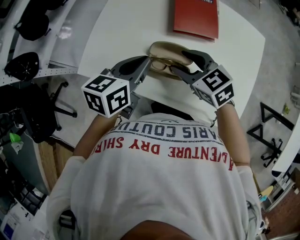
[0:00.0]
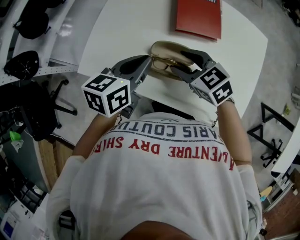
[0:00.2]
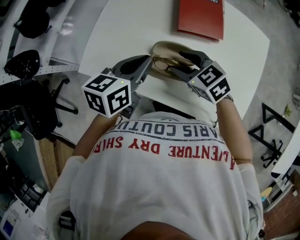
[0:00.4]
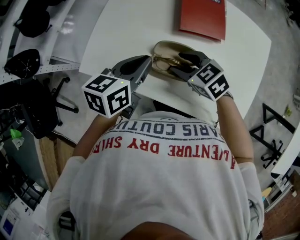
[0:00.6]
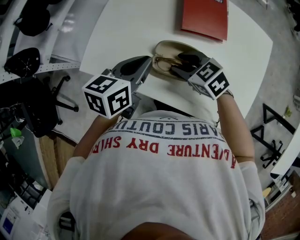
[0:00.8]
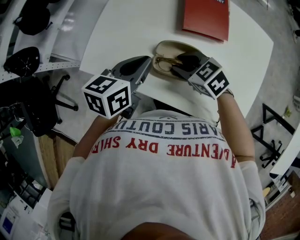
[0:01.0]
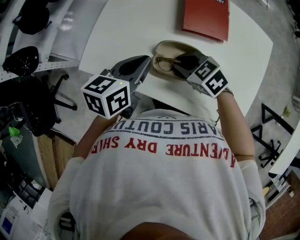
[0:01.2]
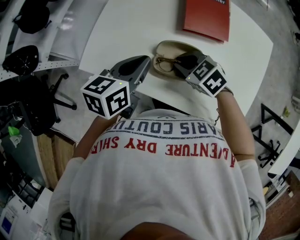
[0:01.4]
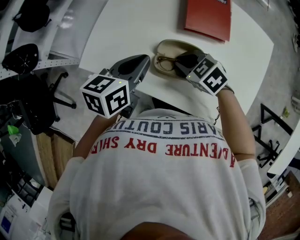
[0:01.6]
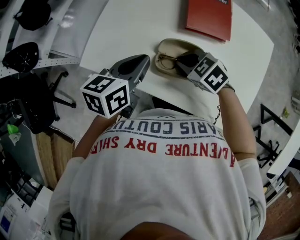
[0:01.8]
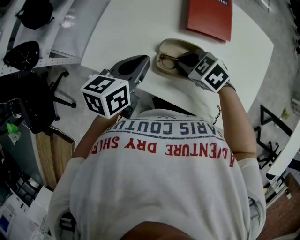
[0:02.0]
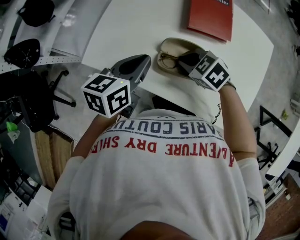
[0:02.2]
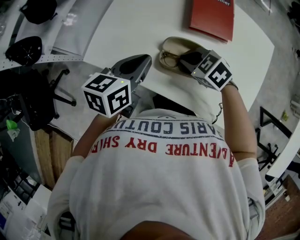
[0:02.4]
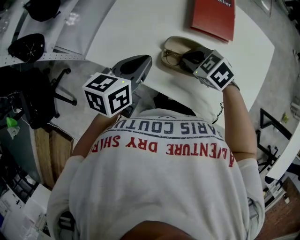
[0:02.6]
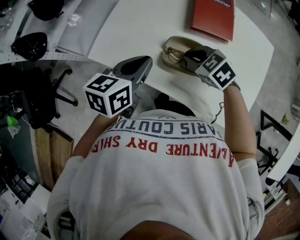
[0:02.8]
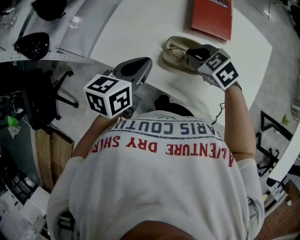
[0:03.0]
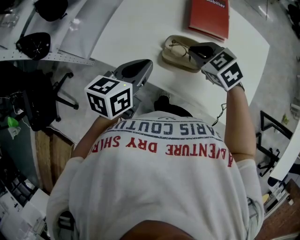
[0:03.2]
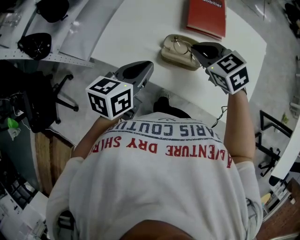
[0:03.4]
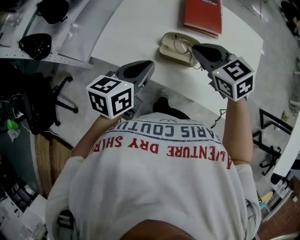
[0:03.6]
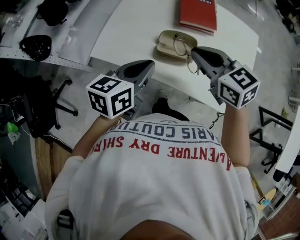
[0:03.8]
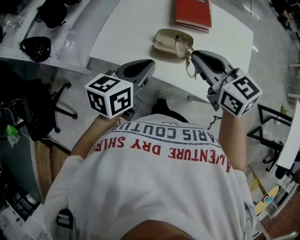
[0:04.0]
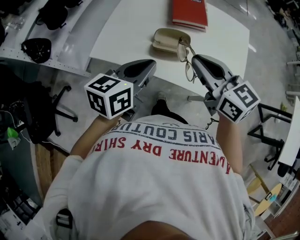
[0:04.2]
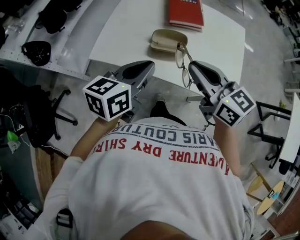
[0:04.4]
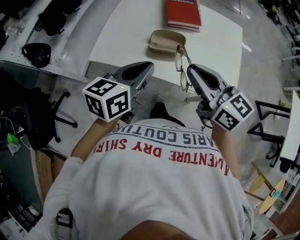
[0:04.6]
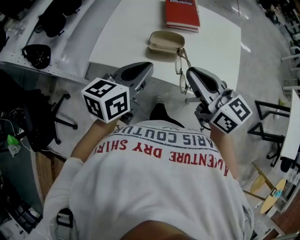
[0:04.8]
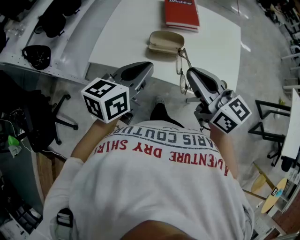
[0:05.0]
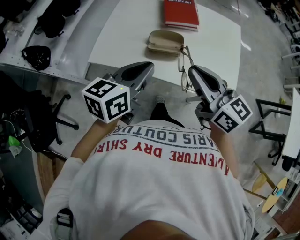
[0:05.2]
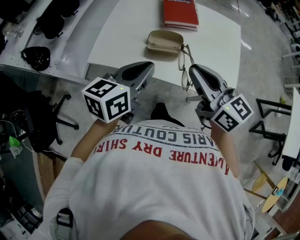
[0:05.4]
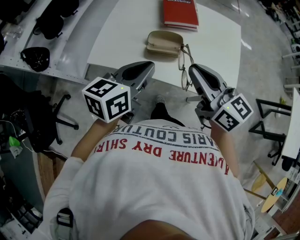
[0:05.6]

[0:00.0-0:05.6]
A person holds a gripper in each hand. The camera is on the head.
0:00.0 to 0:01.4: The right gripper goes roughly 5 cm downward, and closes.
0:01.4 to 0:02.8: The grippers move only a little.
0:02.8 to 0:04.2: The left gripper shifts approximately 15 cm backward and upward, while the right gripper is displaced upward and backward by approximately 25 cm, and tilts its fingers about 40 degrees upward.
0:04.2 to 0:05.6: The grippers move only a little.

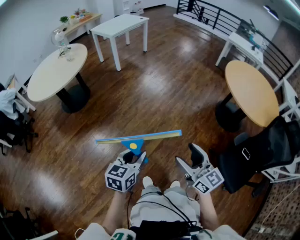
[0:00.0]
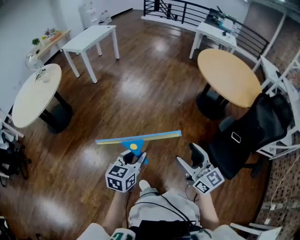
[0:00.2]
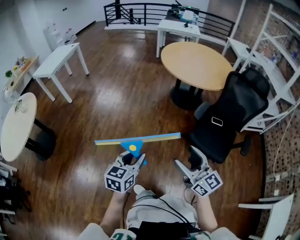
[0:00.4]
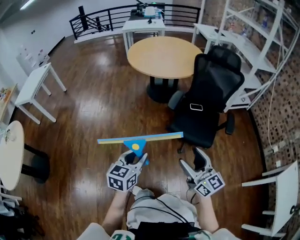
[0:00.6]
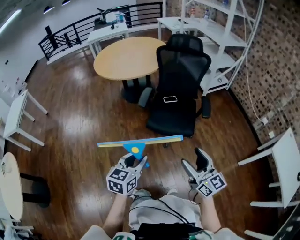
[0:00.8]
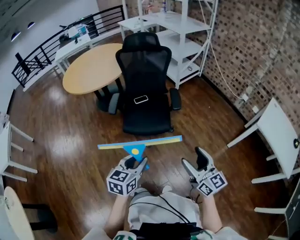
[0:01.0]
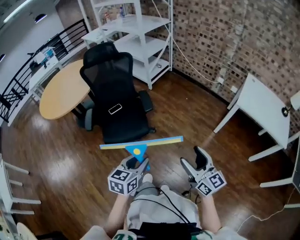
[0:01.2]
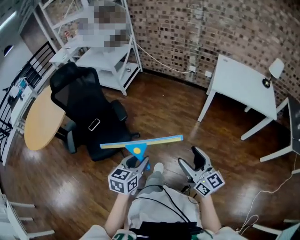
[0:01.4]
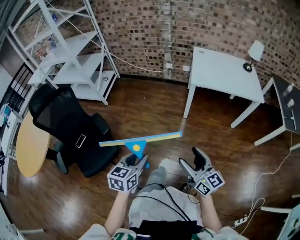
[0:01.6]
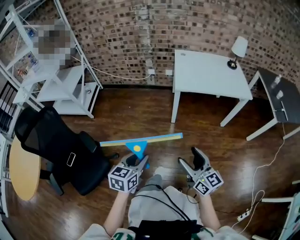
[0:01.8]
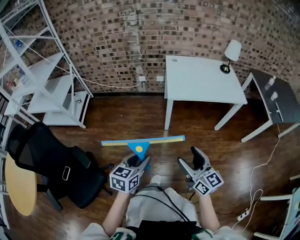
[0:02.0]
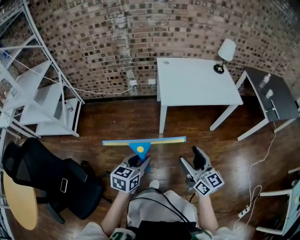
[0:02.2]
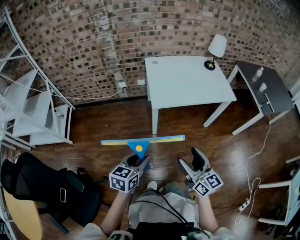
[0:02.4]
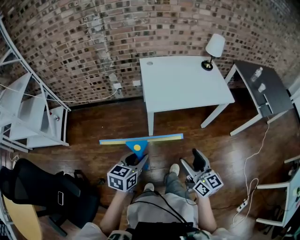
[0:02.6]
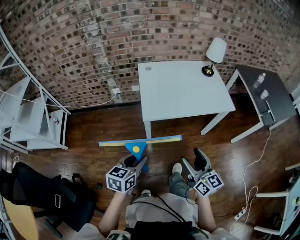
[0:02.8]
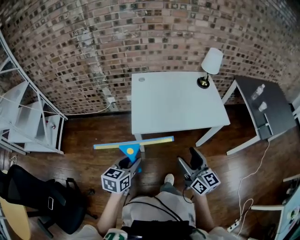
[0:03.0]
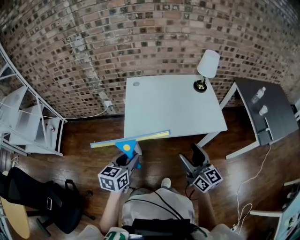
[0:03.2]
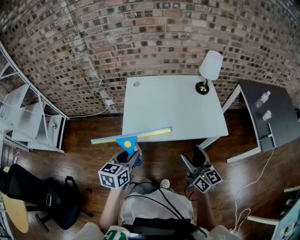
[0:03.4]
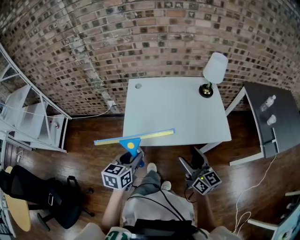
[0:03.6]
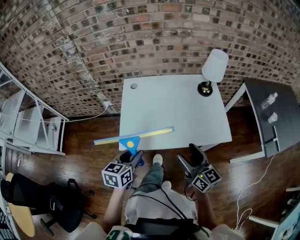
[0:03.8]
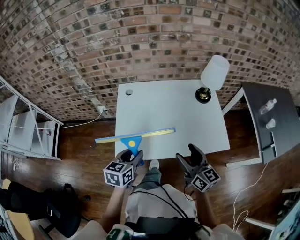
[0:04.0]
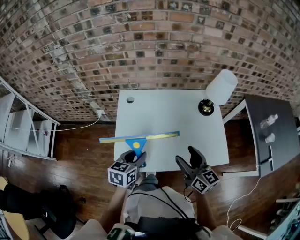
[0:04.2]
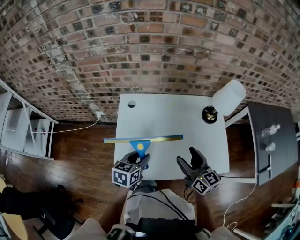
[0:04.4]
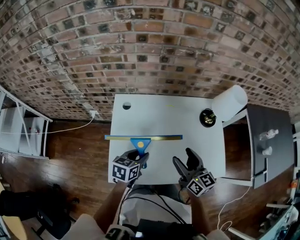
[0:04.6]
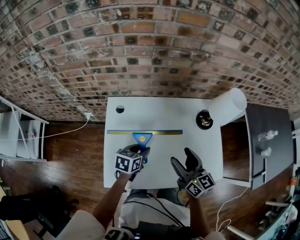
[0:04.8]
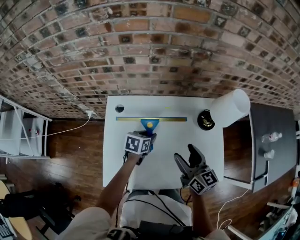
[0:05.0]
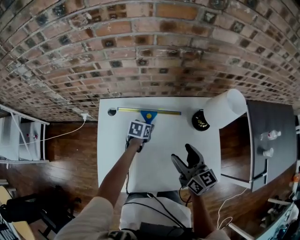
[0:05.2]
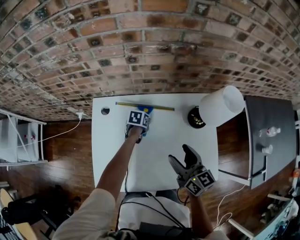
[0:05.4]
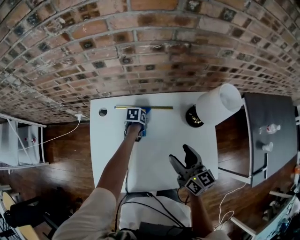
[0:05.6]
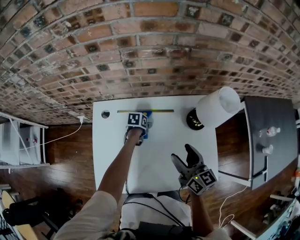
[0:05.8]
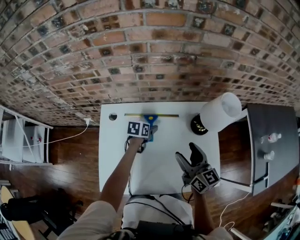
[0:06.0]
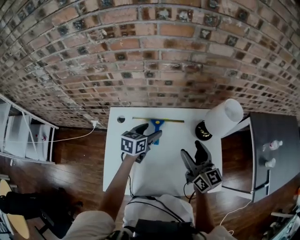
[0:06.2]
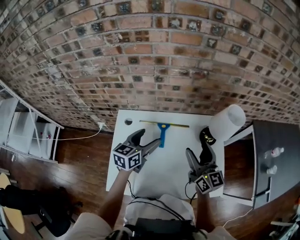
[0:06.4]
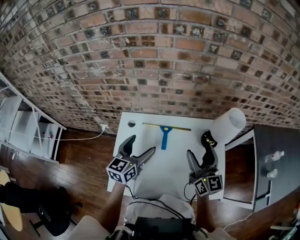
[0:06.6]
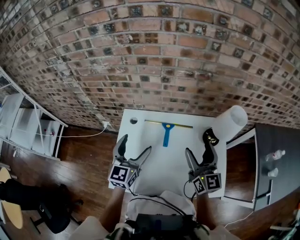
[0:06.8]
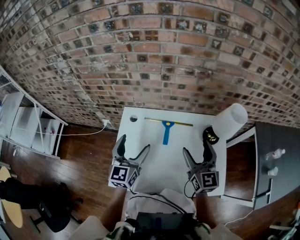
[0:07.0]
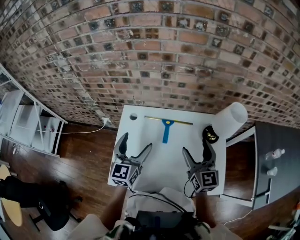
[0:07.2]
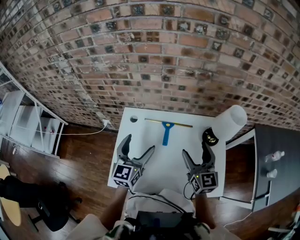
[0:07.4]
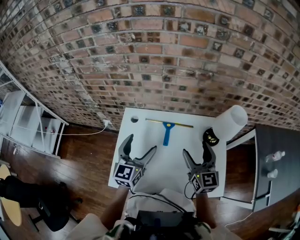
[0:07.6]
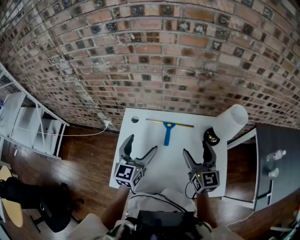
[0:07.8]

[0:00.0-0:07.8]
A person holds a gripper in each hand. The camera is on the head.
0:00.0 to 0:01.6: The two grippers travel together, roughly 90 cm. The right gripper swivels about 110 degrees; the left gripper swivels about 110 degrees.
0:01.6 to 0:03.2: The two grippers travel together, some 60 cm. The right gripper rotates some 20 degrees.
0:03.2 to 0:04.6: Both grippers travel together forward, roughly 35 cm.
0:04.6 to 0:06.2: The right gripper is displaced forward and to the right by roughly 15 cm; the left gripper travels forward by roughly 20 cm, and opens its fingers.
0:06.2 to 0:07.8: The left gripper is displaced upward, backward and to the left by approximately 20 cm, and turns by some 40 degrees.

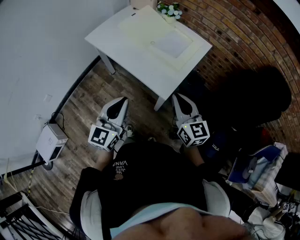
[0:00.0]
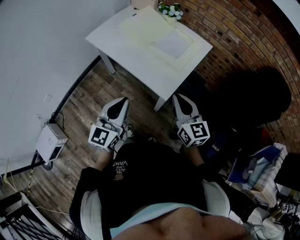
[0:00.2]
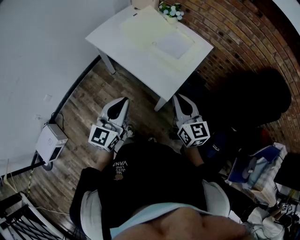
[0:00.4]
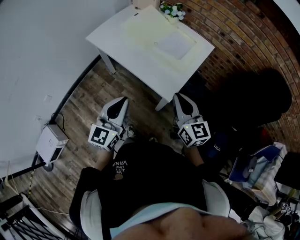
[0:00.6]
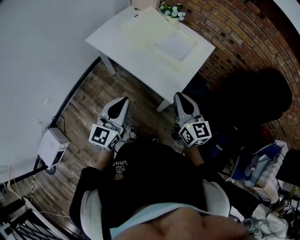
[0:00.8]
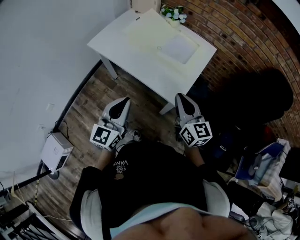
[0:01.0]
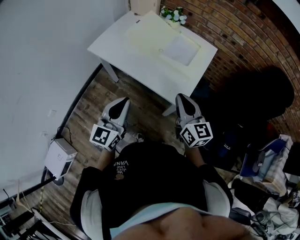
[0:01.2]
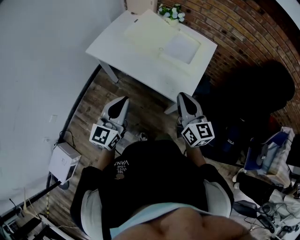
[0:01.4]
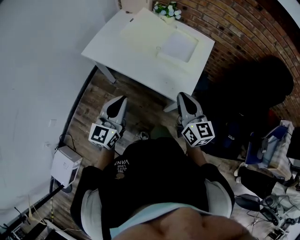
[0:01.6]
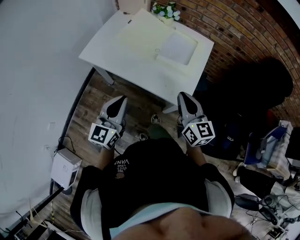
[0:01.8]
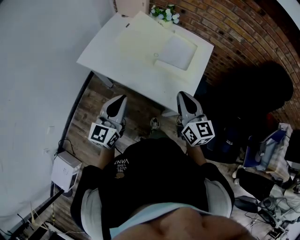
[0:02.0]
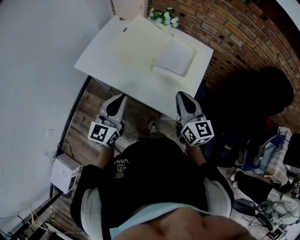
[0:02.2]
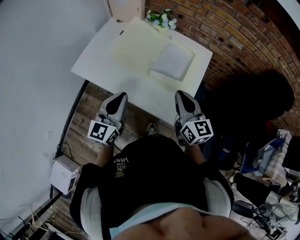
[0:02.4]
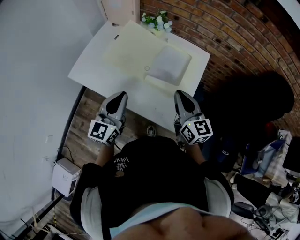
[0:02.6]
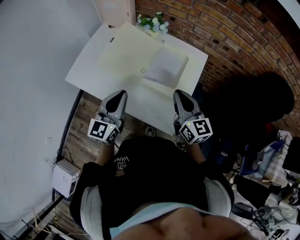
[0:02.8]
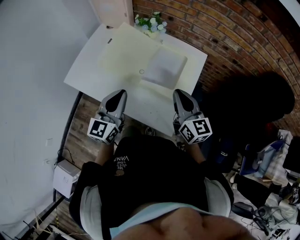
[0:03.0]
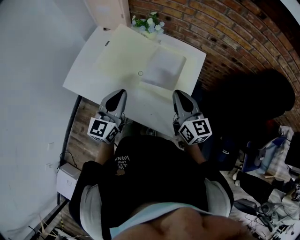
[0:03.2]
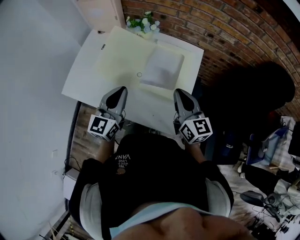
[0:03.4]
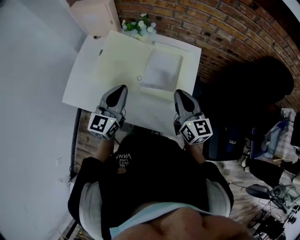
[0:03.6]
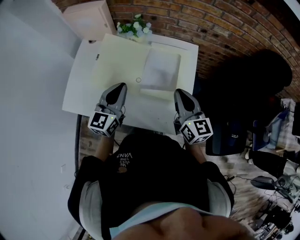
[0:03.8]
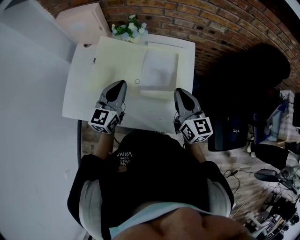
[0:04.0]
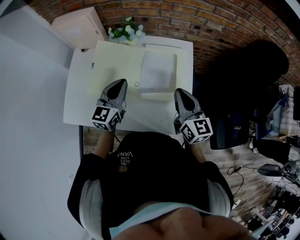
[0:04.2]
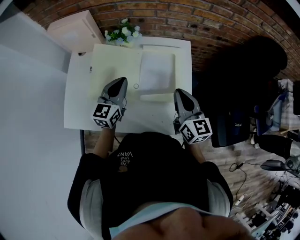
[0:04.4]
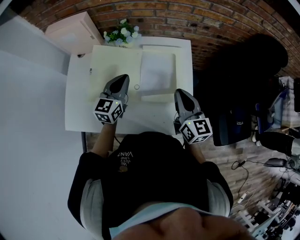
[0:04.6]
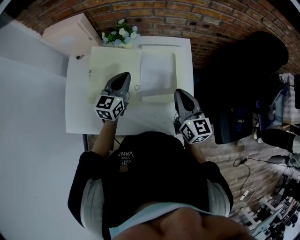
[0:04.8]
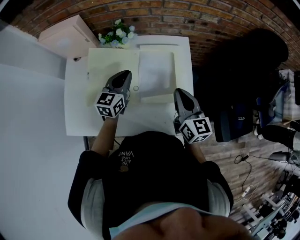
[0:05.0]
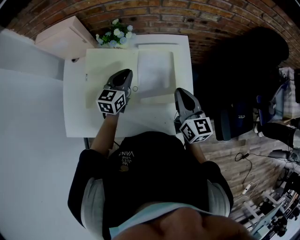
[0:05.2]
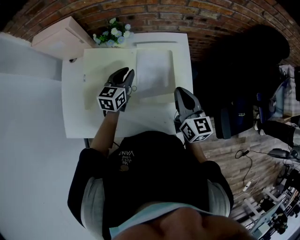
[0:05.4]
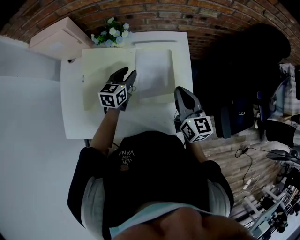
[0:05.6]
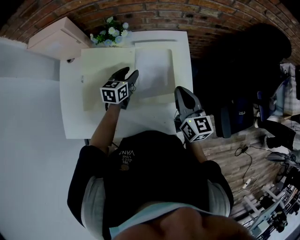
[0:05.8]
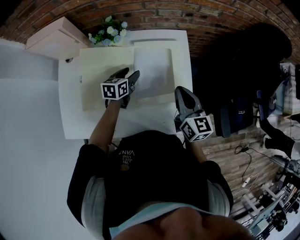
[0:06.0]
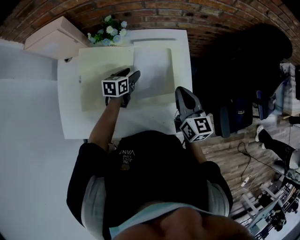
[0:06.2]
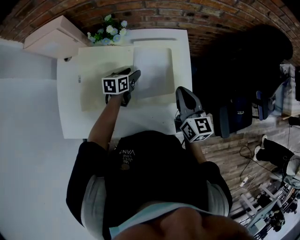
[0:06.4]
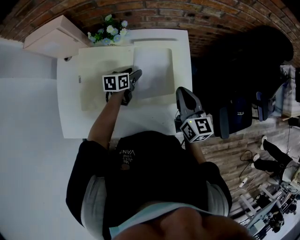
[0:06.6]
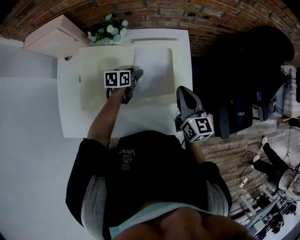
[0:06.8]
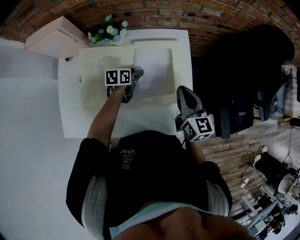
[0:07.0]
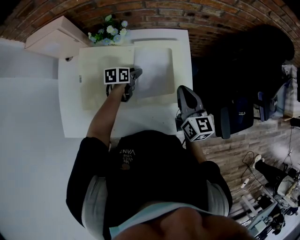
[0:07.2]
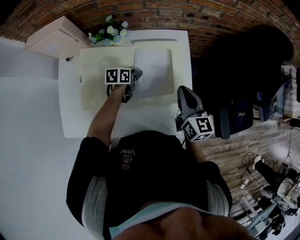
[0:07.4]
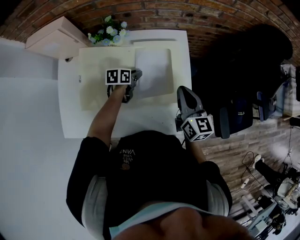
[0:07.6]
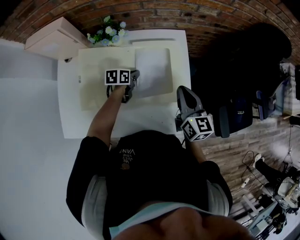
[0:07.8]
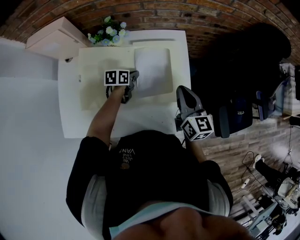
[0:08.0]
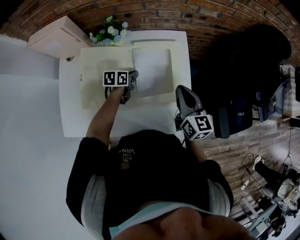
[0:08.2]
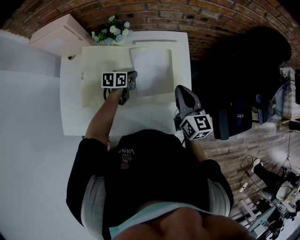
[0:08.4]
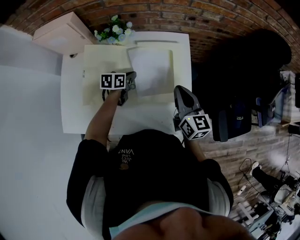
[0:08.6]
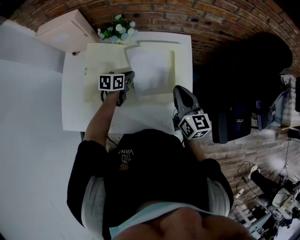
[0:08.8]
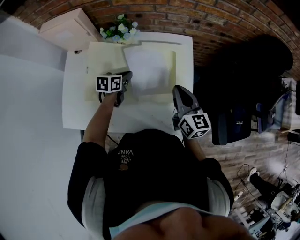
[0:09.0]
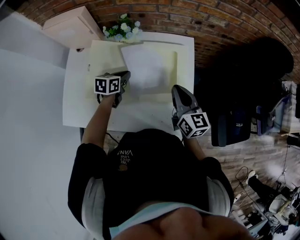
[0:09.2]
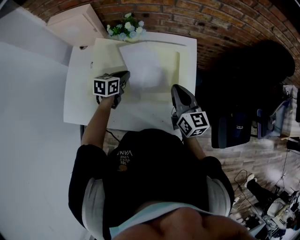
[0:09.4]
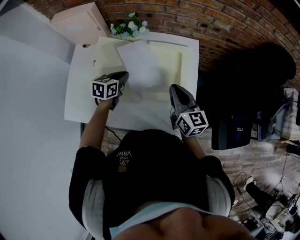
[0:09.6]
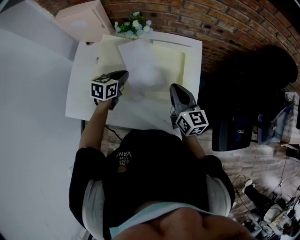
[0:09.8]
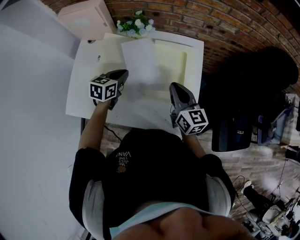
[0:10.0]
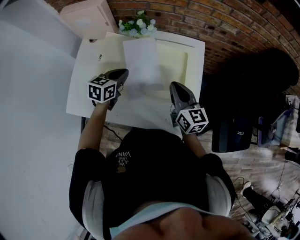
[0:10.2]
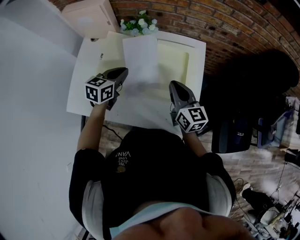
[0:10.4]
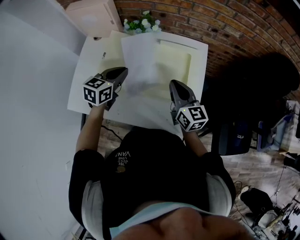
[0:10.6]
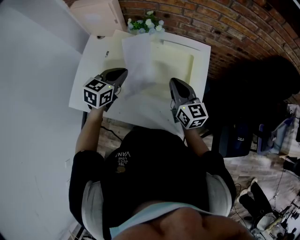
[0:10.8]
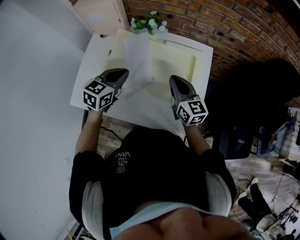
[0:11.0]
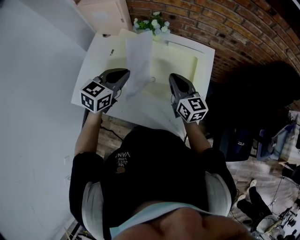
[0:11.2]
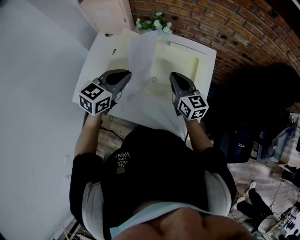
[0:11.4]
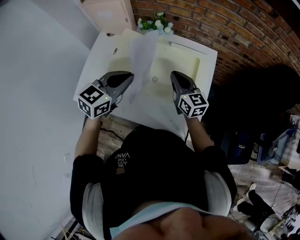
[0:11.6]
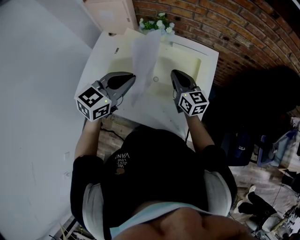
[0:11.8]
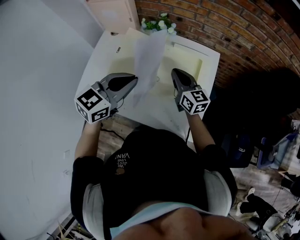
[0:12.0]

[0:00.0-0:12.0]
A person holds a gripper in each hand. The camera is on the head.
0:00.0 to 0:01.6: Both grippers move to the left and forward, approximately 15 cm.
0:01.6 to 0:03.0: Both grippers travel together forward, roughly 20 cm.
0:03.0 to 0:04.4: The right gripper rotates approximately 20 degrees. The left gripper heads forward, covering roughly 15 cm, and swivels roughly 20 degrees.
0:04.4 to 0:06.0: The left gripper is displaced downward and forward by about 20 cm, changes its angle by some 30 degrees, and opens up; the right gripper ends up some 5 cm from where it was.
0:06.0 to 0:07.6: The left gripper is displaced downward by some 5 cm, and closes.
0:07.6 to 0:09.0: The left gripper travels upward by some 5 cm, and closes up.
0:09.0 to 0:10.4: The right gripper shifts approximately 5 cm to the left; the left gripper goes roughly 15 cm upward, backward and to the left.
0:10.4 to 0:12.0: The right gripper moves roughly 5 cm; the left gripper goes some 15 cm upward and backward.
